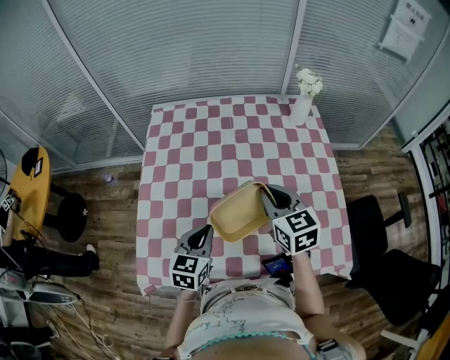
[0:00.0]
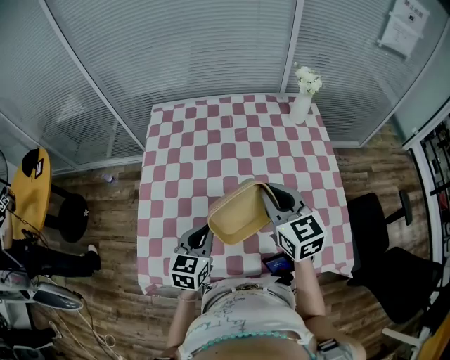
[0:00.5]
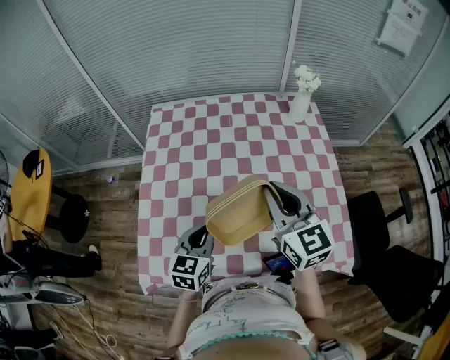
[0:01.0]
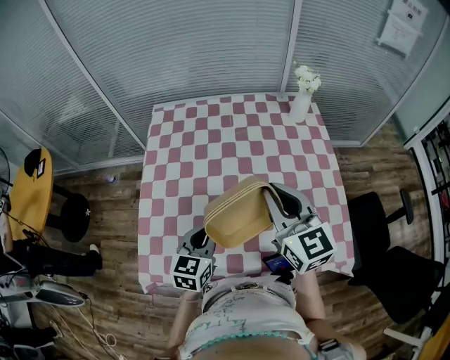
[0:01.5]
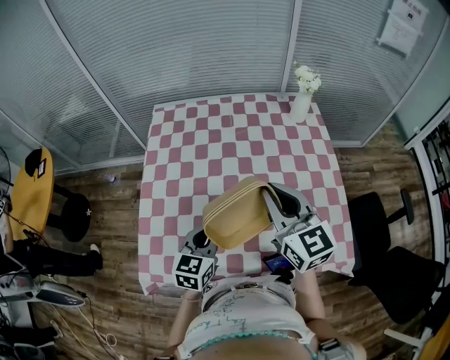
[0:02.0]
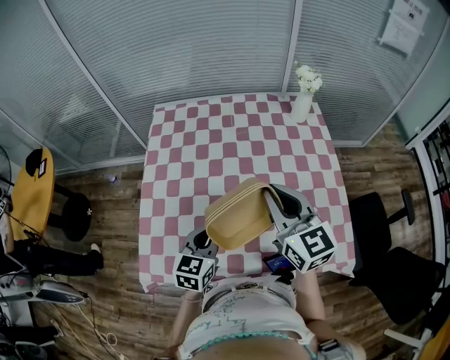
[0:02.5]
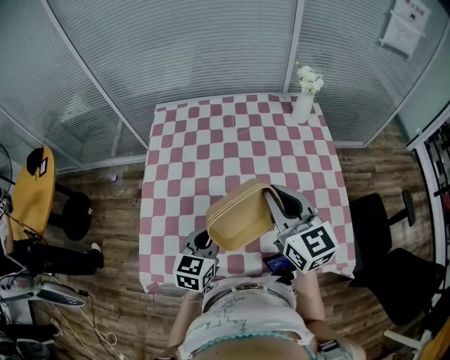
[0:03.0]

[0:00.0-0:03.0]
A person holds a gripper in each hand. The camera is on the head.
0:00.0 to 0:01.5: The right gripper heads upward, covering approximately 10 cm.
0:01.5 to 0:03.0: Both grippers stay about where they are.

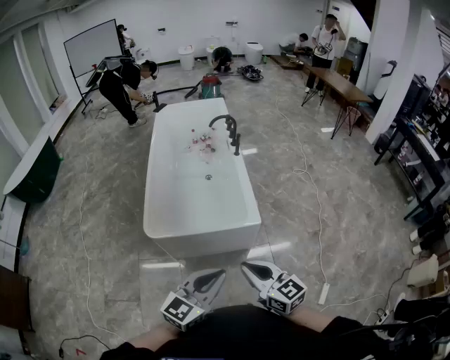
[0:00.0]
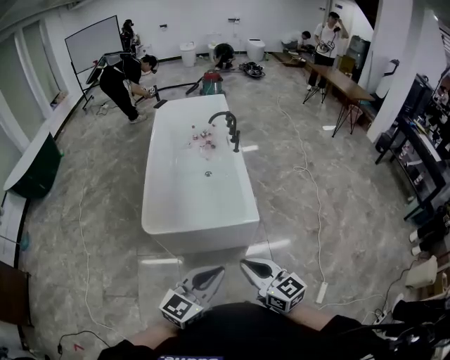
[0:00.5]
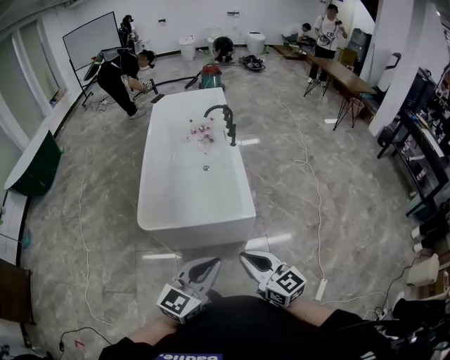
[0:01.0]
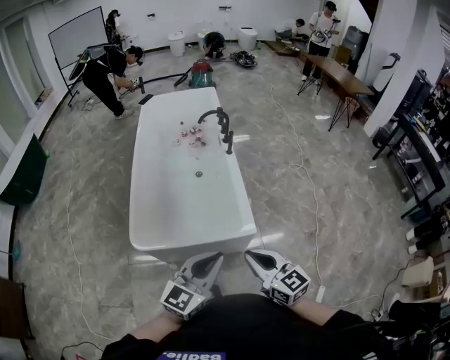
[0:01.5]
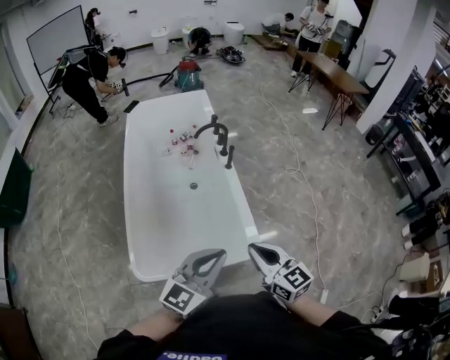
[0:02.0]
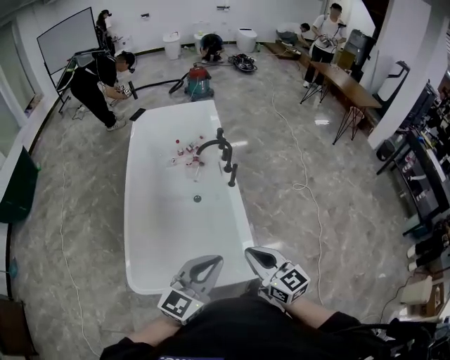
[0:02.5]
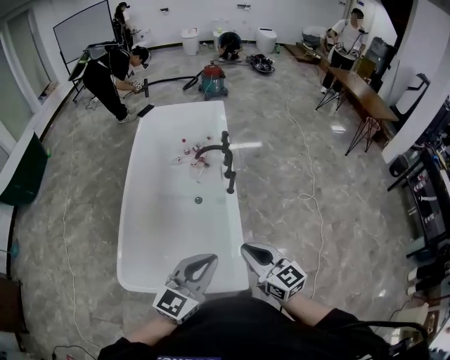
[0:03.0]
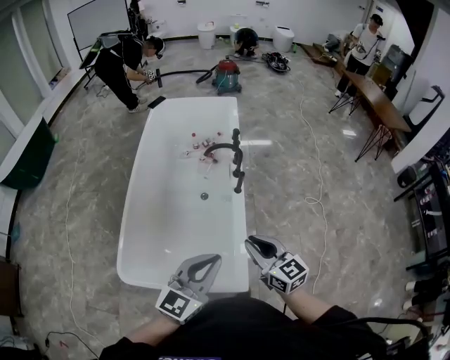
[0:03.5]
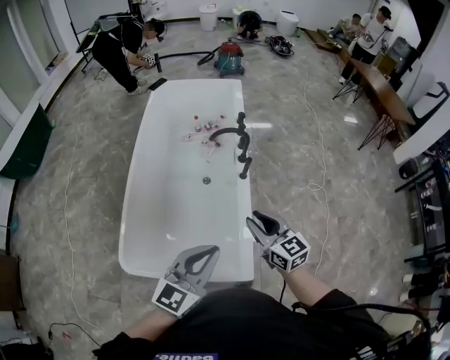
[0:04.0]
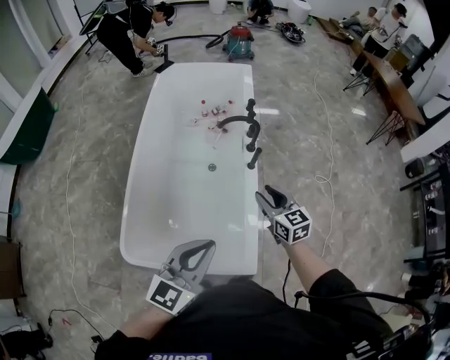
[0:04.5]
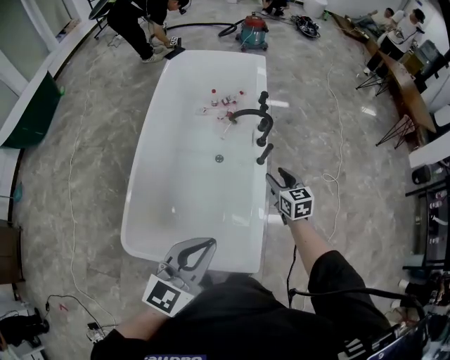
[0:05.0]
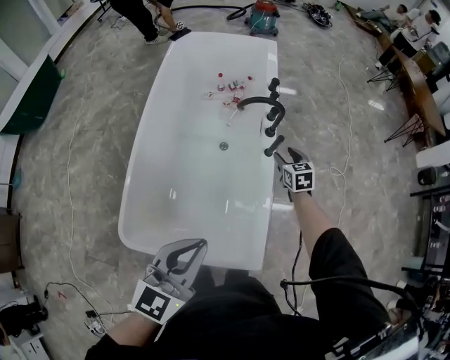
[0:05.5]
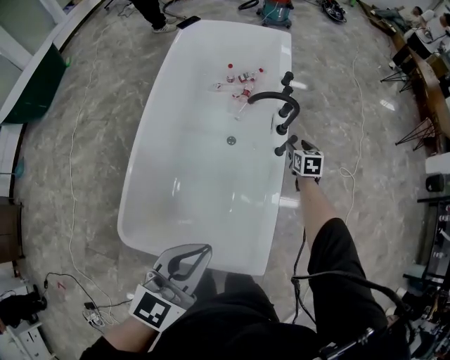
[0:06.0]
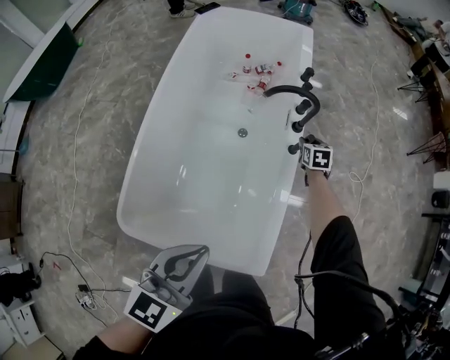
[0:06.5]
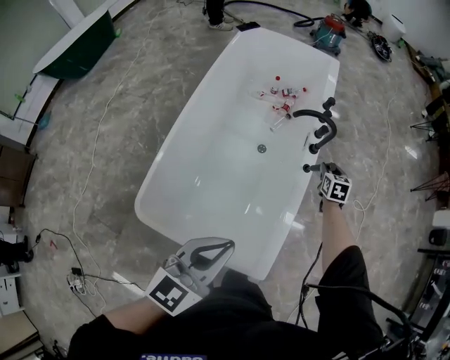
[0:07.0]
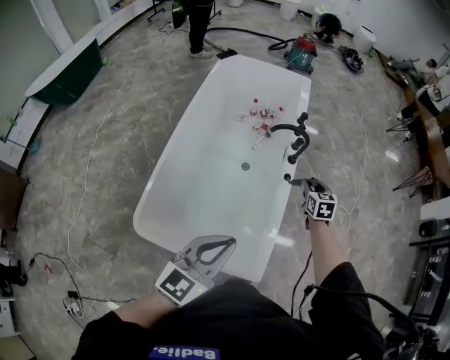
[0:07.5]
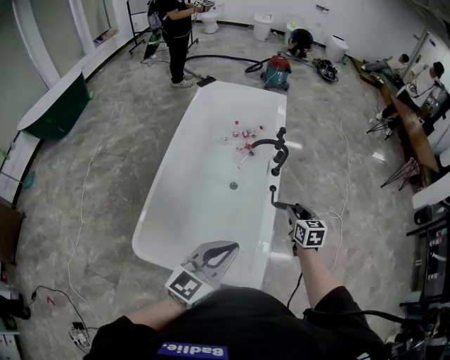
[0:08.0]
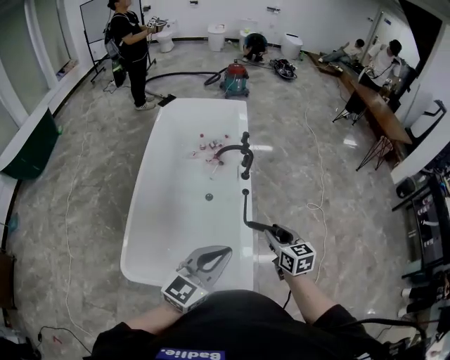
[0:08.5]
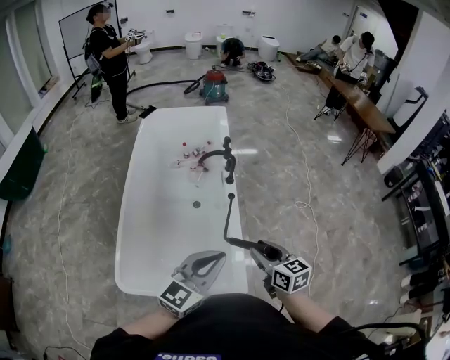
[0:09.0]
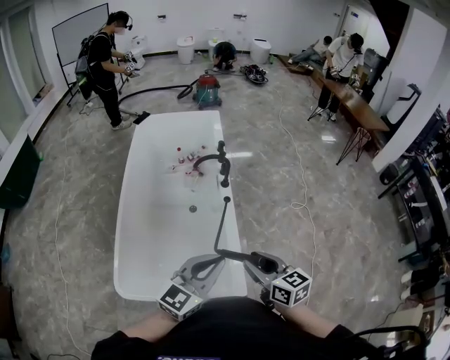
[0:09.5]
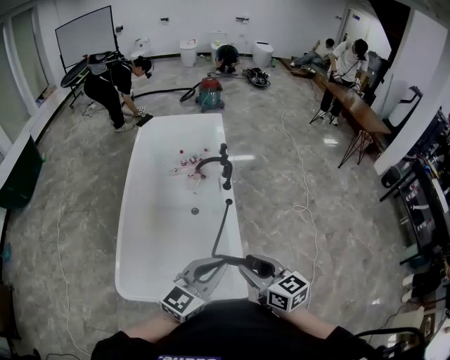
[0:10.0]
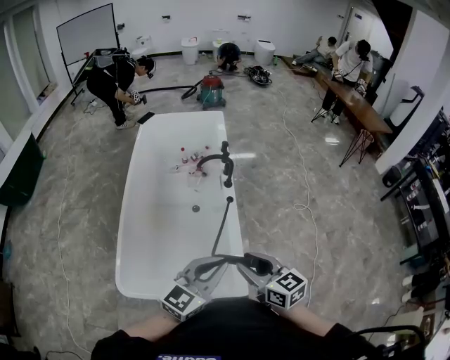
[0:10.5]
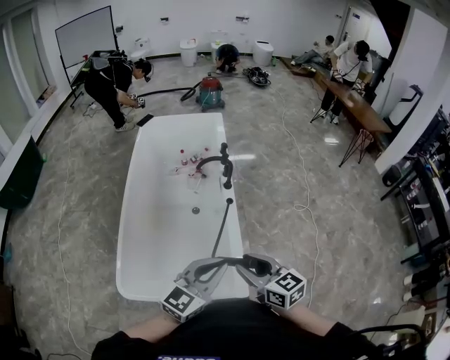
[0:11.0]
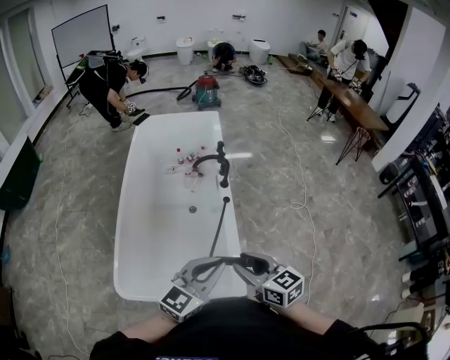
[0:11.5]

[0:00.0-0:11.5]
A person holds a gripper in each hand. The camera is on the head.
0:00.0 to 0:02.0: The two grippers go some 35 cm forward.
0:02.0 to 0:04.0: The left gripper heads forward and to the right, covering roughly 20 cm. Meanwhile the right gripper goes approximately 25 cm forward.
0:04.0 to 0:06.0: The right gripper travels forward and downward by approximately 50 cm, rotates about 30 degrees, and opens up, while the left gripper travels downward, to the left and forward by roughly 15 cm.
0:06.0 to 0:07.5: The left gripper is displaced backward and upward by approximately 10 cm. Meanwhile the right gripper moves upward and backward, approximately 20 cm.
0:07.5 to 0:09.5: The right gripper travels backward and upward by some 40 cm, and rotates about 30 degrees. The left gripper goes roughly 10 cm to the right, and swivels some 20 degrees.
0:09.5 to 0:11.5: There are only small adjustments of the grippers.

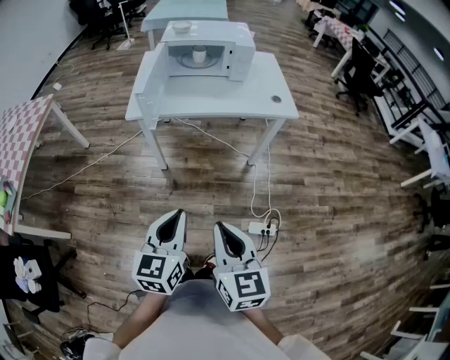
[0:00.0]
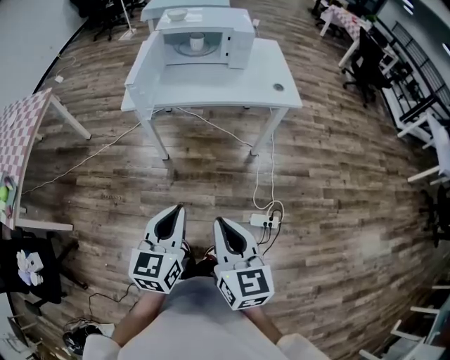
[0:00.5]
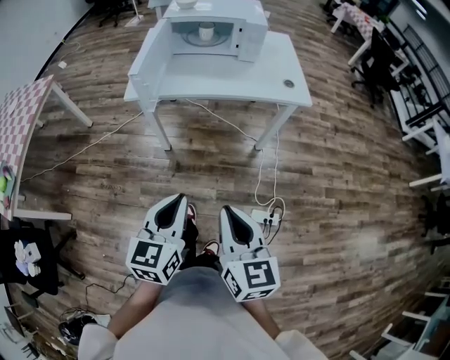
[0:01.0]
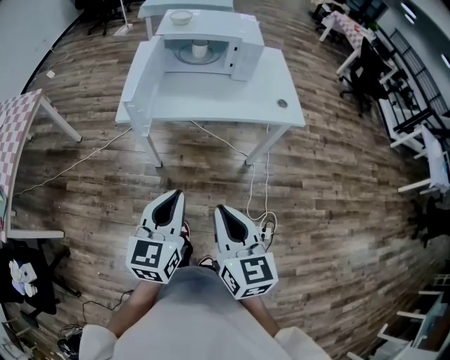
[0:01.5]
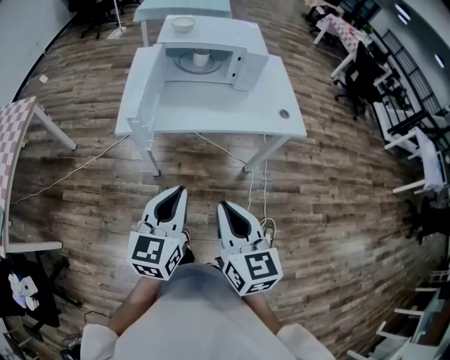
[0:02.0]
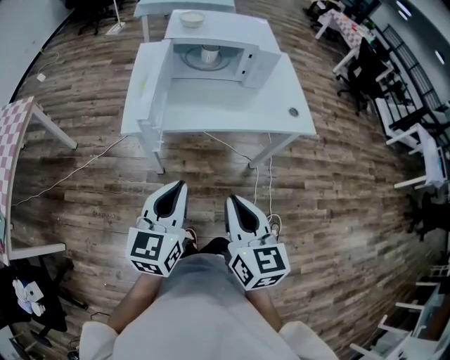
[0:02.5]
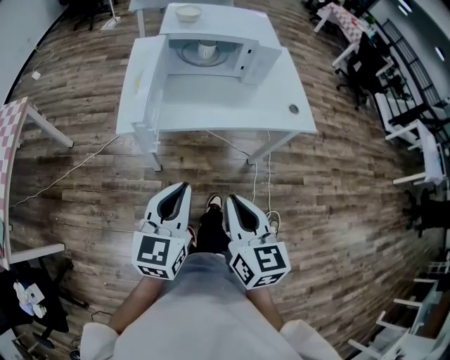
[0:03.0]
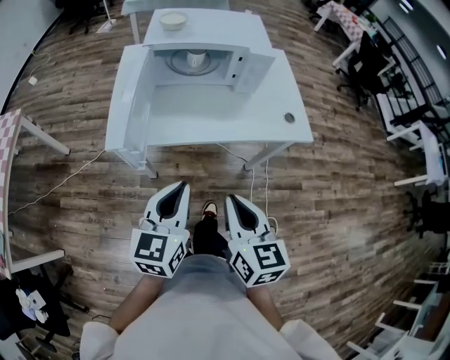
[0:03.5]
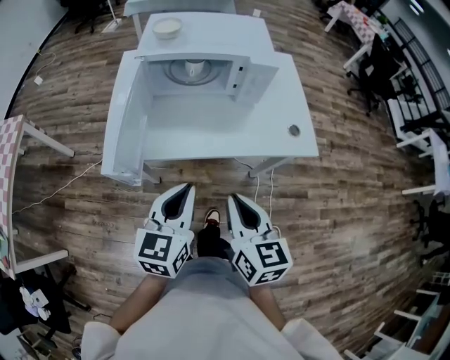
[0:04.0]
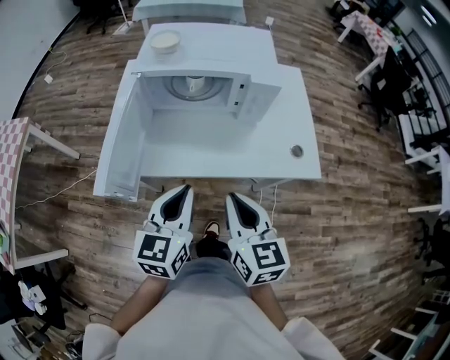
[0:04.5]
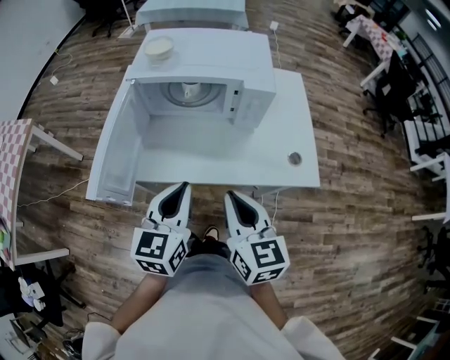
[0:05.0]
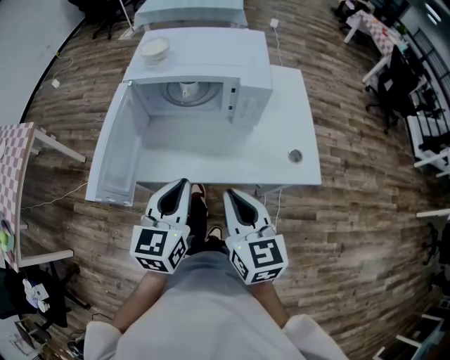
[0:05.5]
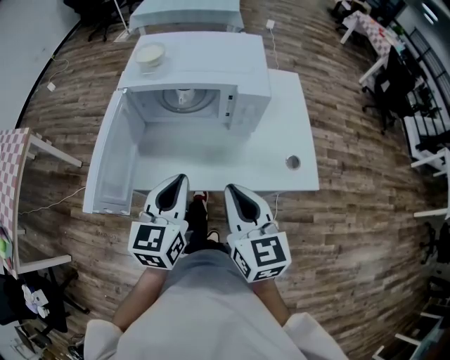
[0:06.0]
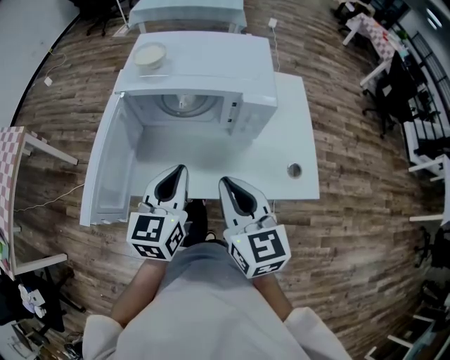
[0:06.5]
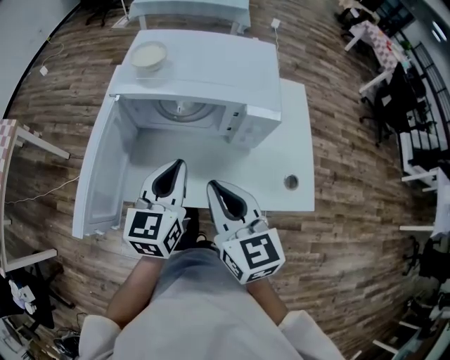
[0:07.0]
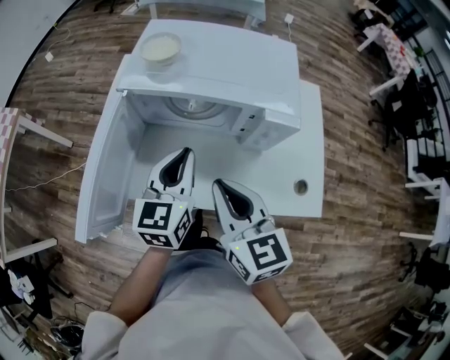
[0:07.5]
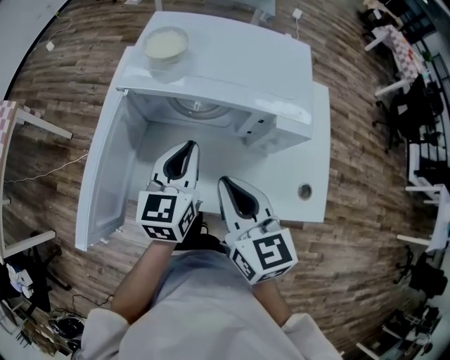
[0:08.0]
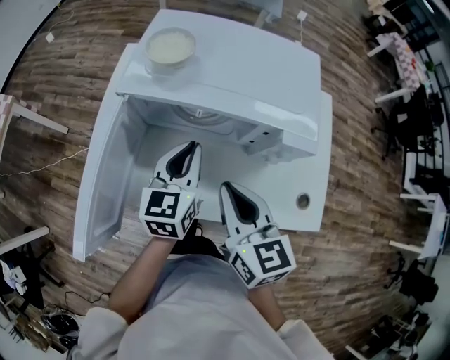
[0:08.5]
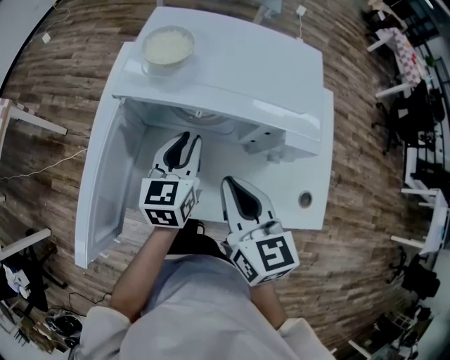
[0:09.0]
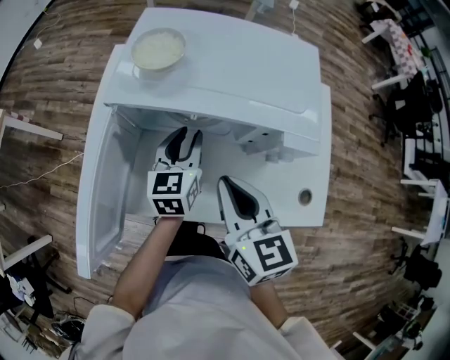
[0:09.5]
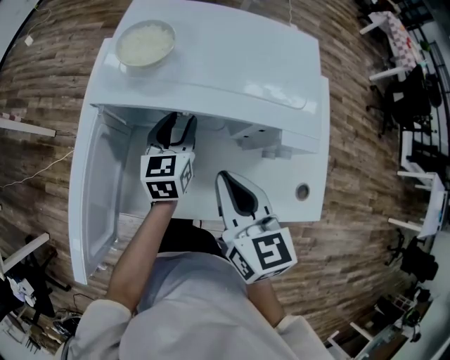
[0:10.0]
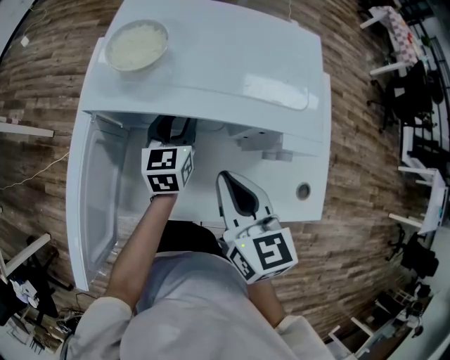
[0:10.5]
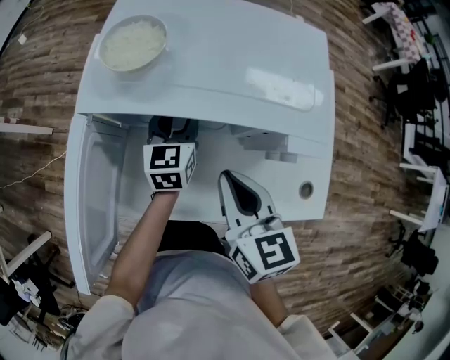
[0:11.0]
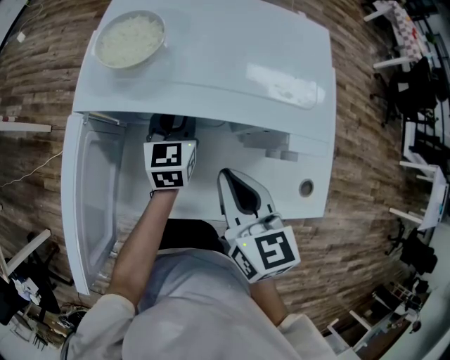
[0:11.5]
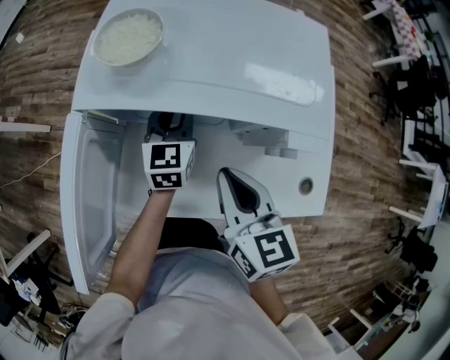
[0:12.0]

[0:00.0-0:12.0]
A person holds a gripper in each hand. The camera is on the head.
0:00.0 to 0:02.0: Both grippers travel together forward, approximately 20 cm.
0:02.0 to 0:04.0: Both grippers travel together forward, some 20 cm.
0:04.0 to 0:06.0: The left gripper heads forward, covering approximately 10 cm. Meanwhile the right gripper moves forward and to the right, about 15 cm.
0:06.0 to 0:08.0: Both grippers travel together forward, approximately 15 cm.
0:08.0 to 0:10.0: The right gripper travels forward by about 5 cm. The left gripper moves forward and downward, some 15 cm, and opens.
0:10.0 to 0:12.0: The left gripper closes up.
